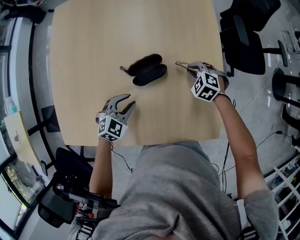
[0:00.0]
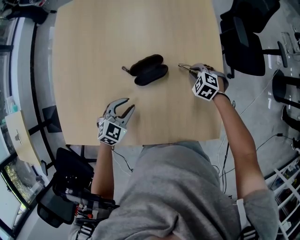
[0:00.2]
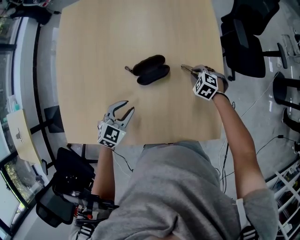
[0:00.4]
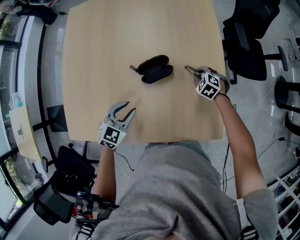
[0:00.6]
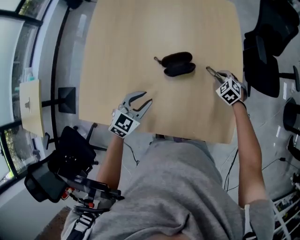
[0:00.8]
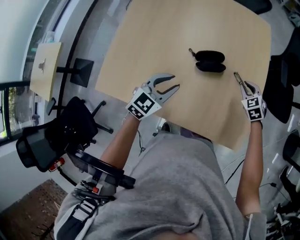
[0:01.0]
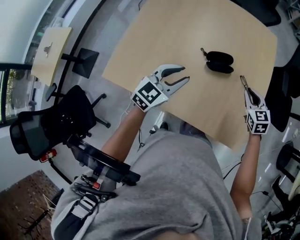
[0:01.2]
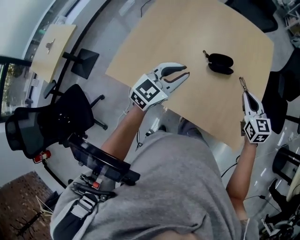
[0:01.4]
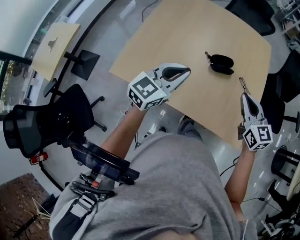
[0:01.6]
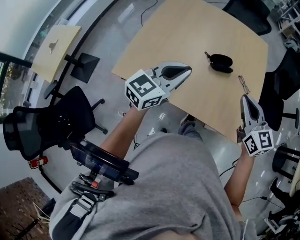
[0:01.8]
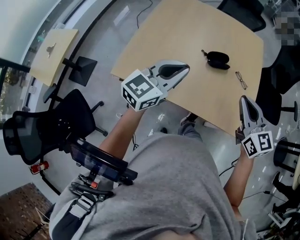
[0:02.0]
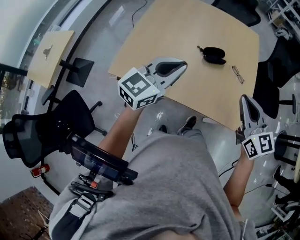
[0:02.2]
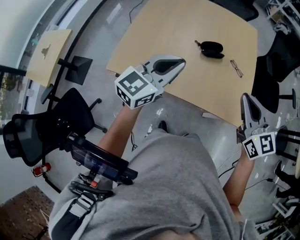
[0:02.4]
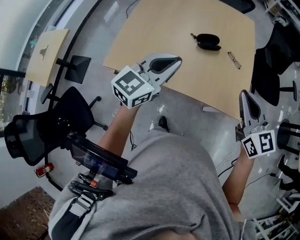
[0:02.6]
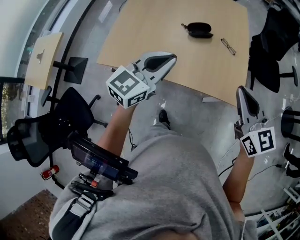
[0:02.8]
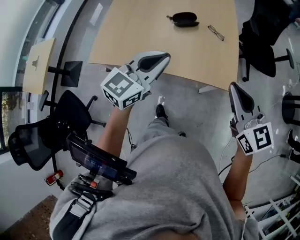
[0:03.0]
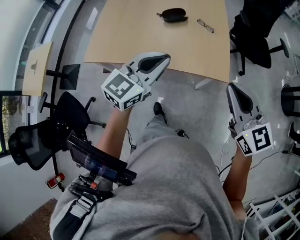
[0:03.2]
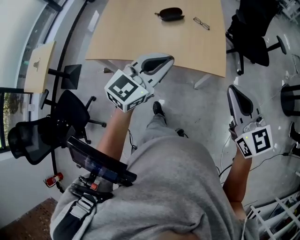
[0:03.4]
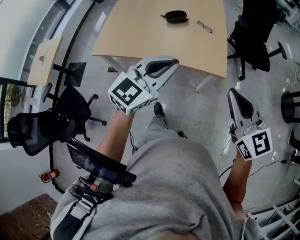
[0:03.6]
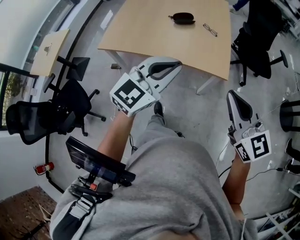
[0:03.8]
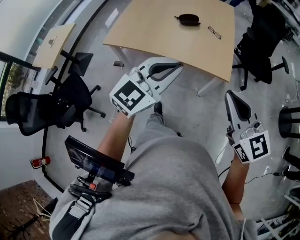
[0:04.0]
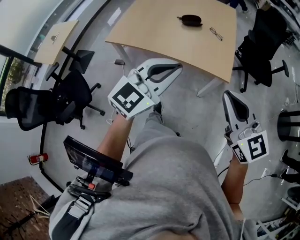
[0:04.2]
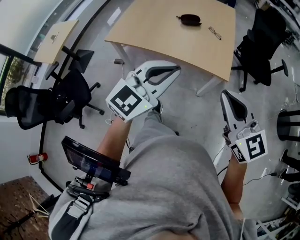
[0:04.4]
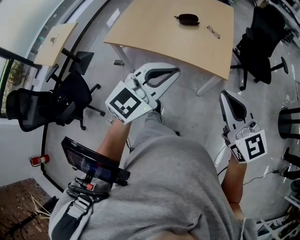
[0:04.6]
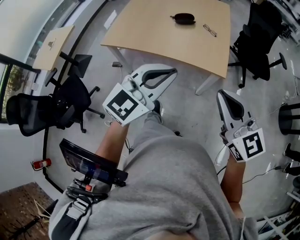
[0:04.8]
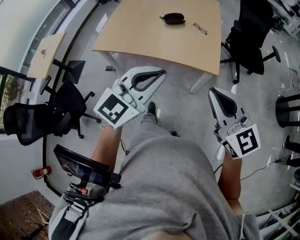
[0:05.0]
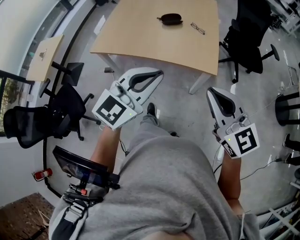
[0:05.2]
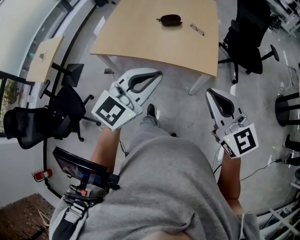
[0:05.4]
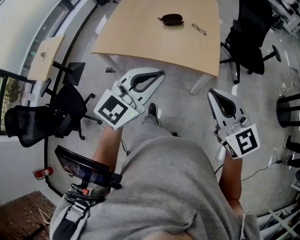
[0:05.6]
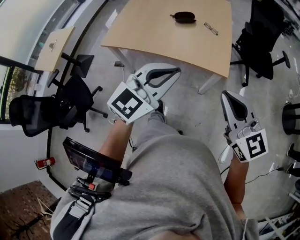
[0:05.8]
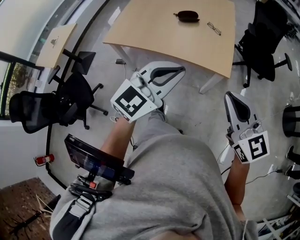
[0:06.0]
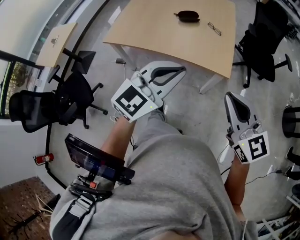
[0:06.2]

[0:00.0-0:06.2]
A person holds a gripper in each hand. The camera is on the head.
0:00.0 to 0:01.6: Both grippers travel together upward and backward, about 35 cm. The right gripper tilts its fingers roughly 50 degrees upward, while the left gripper tips its fingers upward by about 40 degrees, and closes.
0:01.6 to 0:03.2: Both grippers travel together backward and to the right, roughly 30 cm.
0:03.2 to 0:04.6: The two grippers go approximately 20 cm backward.
0:04.6 to 0:06.2: There are only small adjustments of the grippers.

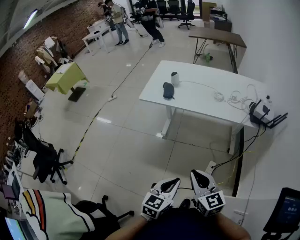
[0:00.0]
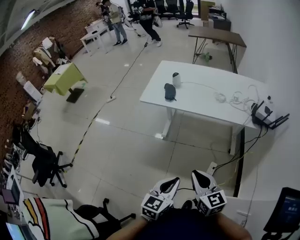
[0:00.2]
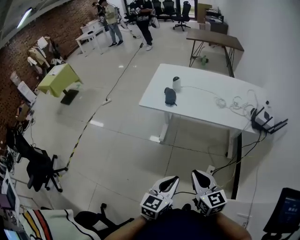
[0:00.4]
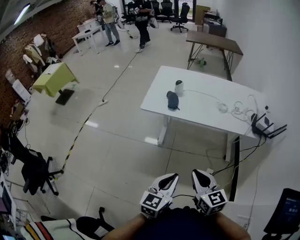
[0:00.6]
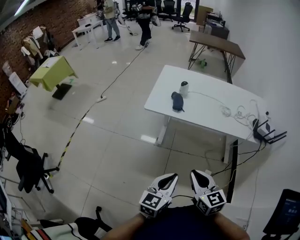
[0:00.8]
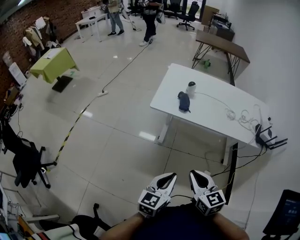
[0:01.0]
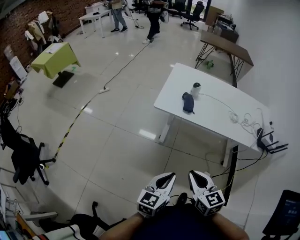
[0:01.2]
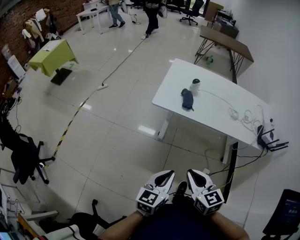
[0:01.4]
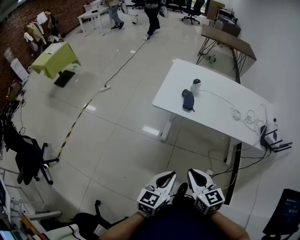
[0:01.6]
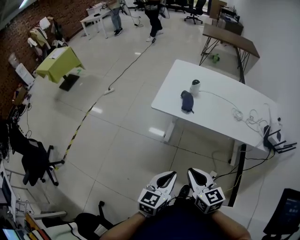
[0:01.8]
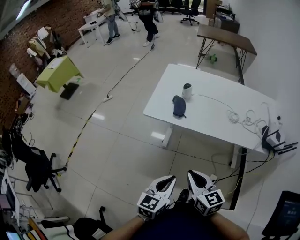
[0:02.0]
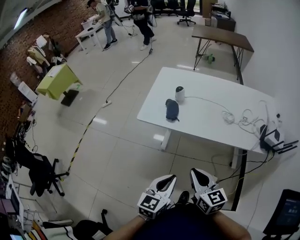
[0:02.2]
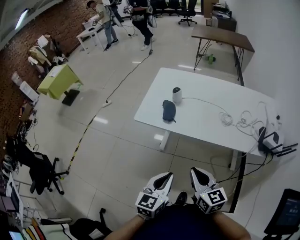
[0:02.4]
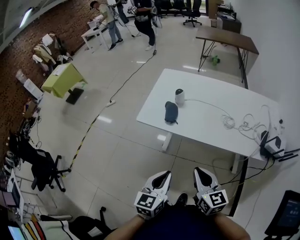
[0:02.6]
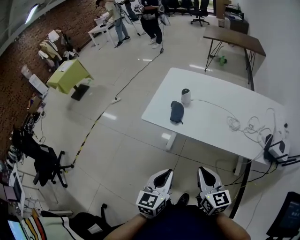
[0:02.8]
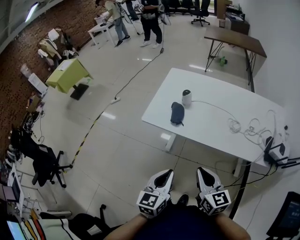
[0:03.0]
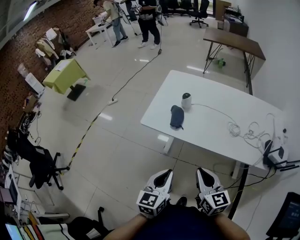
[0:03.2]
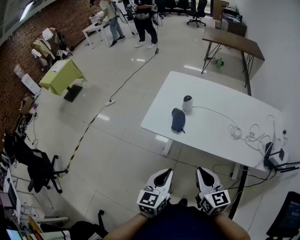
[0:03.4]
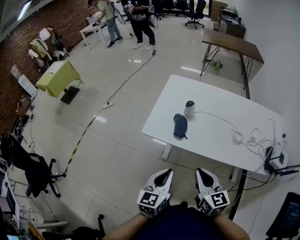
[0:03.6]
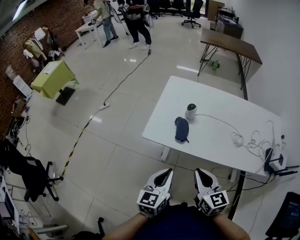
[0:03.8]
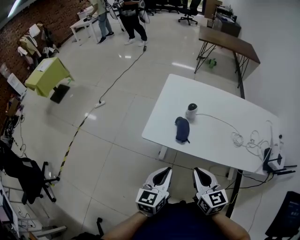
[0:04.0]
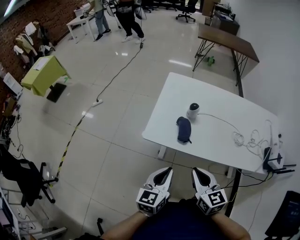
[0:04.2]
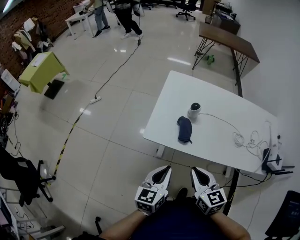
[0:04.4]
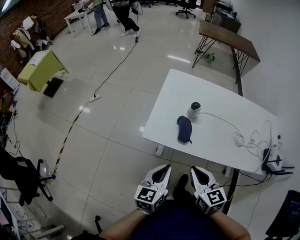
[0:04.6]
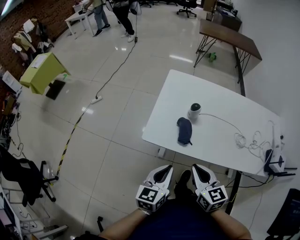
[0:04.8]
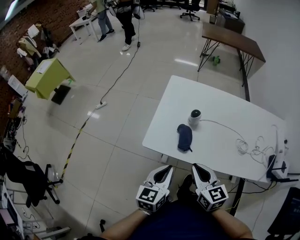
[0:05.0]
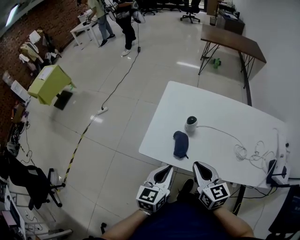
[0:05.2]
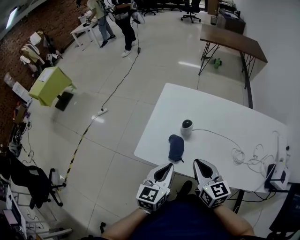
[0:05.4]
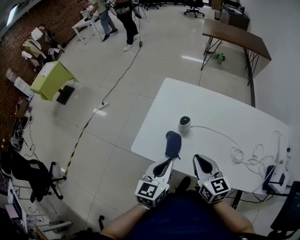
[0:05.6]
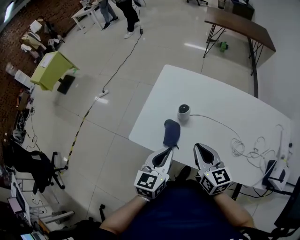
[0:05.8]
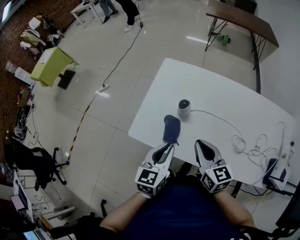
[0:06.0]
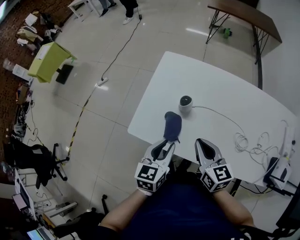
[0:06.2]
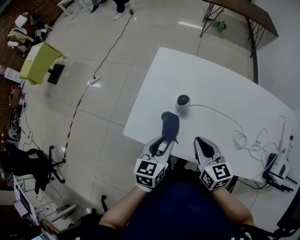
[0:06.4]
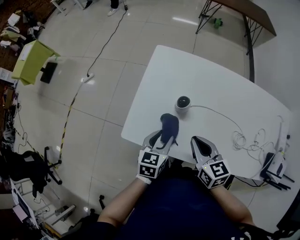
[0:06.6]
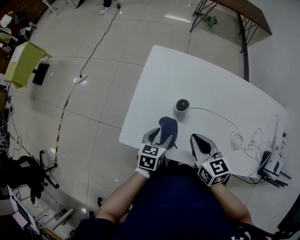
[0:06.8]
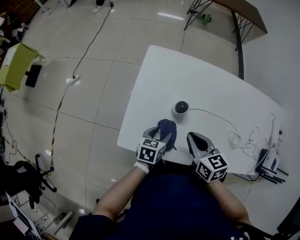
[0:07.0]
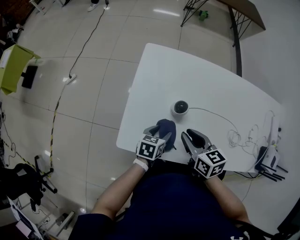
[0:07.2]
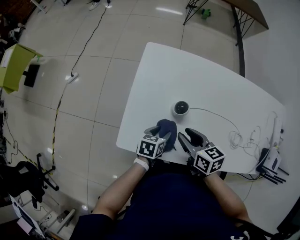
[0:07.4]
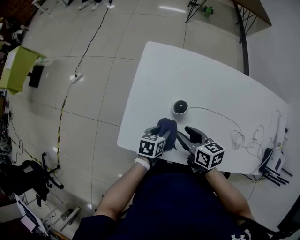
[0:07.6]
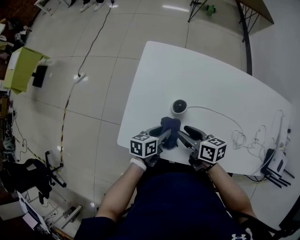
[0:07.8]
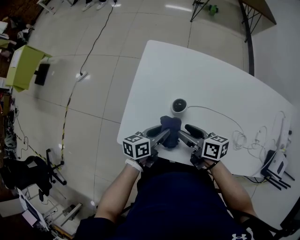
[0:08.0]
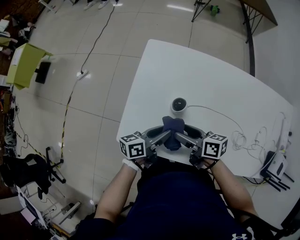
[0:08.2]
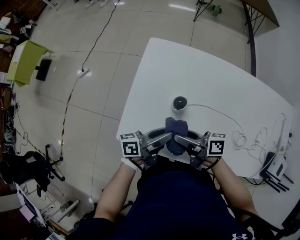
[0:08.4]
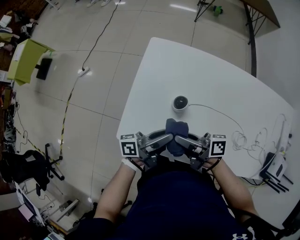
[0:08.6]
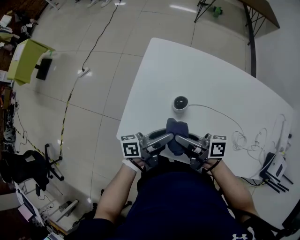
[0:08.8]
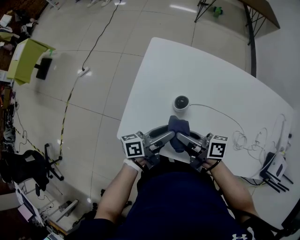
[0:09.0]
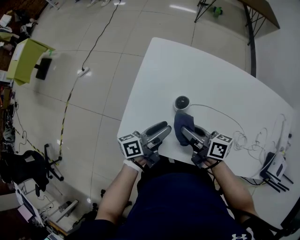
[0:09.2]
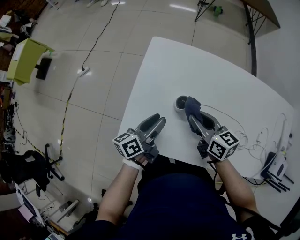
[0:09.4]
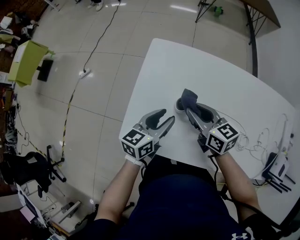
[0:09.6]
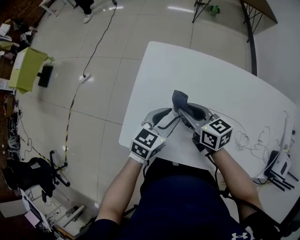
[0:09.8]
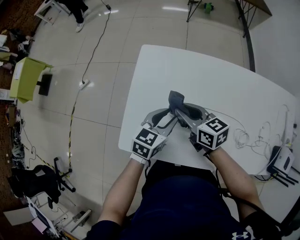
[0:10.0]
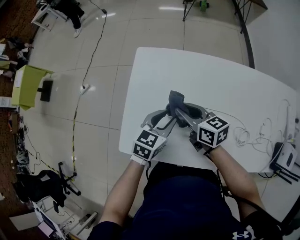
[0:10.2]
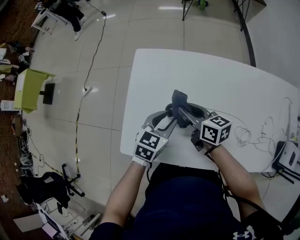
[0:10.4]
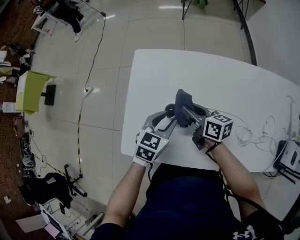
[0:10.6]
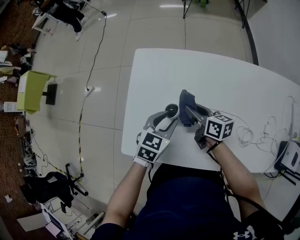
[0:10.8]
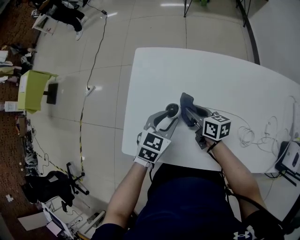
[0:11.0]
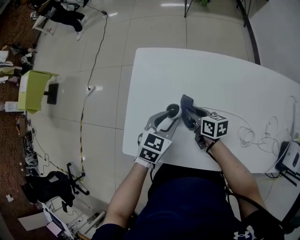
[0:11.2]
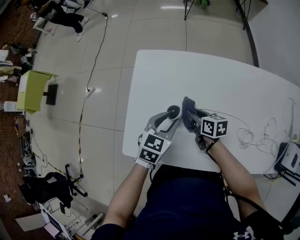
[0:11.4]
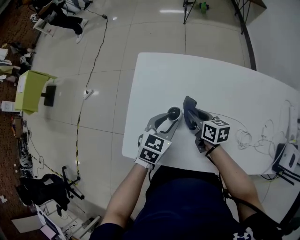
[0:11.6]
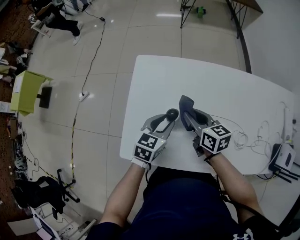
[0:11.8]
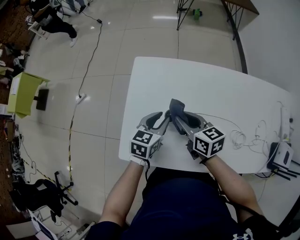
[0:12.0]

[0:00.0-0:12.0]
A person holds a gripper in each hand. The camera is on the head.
0:00.0 to 0:01.6: Both grippers move to the left and forward, about 25 cm.
0:01.6 to 0:03.0: The left gripper travels forward and to the right by some 15 cm, while the right gripper heads to the right and forward, covering roughly 20 cm.
0:03.0 to 0:04.4: The left gripper is displaced forward and to the left by about 20 cm. The right gripper shifts some 20 cm to the left and forward.
0:04.4 to 0:06.0: Both grippers travel together forward and to the right, some 20 cm.
0:06.0 to 0:07.6: The left gripper travels downward and forward by about 20 cm, changes its angle by approximately 40 degrees, and opens. Meanwhile the right gripper travels downward, forward and to the left by approximately 15 cm, swivels approximately 30 degrees, and opens its fingers.
0:07.6 to 0:09.0: The left gripper moves upward, roughly 10 cm, and points its fingers roughly 50 degrees further upward; the right gripper rotates roughly 40 degrees, and closes its fingers.
0:09.0 to 0:10.4: The left gripper shifts about 10 cm forward, and rotates around the line of its fingers by some 50 degrees, clockwise from behind. The right gripper heads forward, covering roughly 10 cm, and turns by approximately 30 degrees.
0:10.4 to 0:12.0: The right gripper goes downward and returns, roughly 10 cm each way.

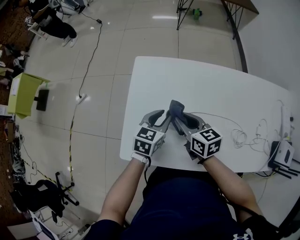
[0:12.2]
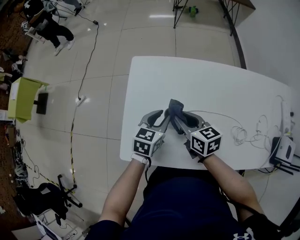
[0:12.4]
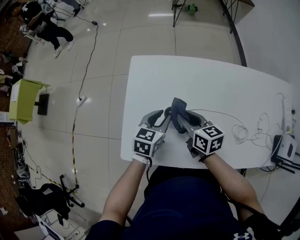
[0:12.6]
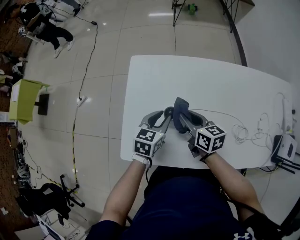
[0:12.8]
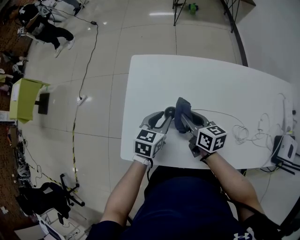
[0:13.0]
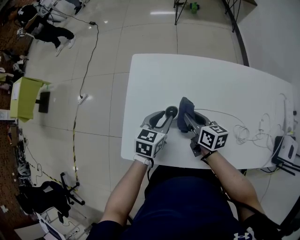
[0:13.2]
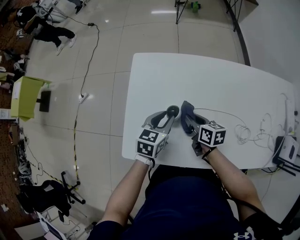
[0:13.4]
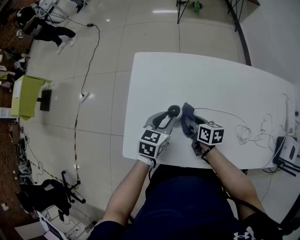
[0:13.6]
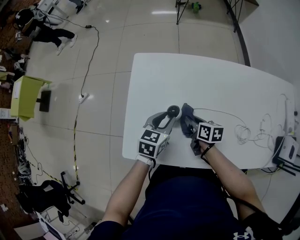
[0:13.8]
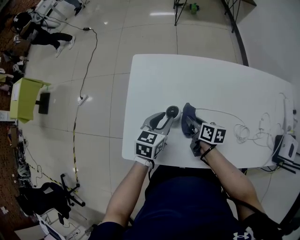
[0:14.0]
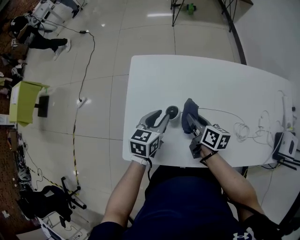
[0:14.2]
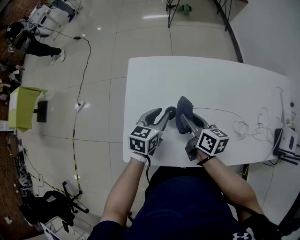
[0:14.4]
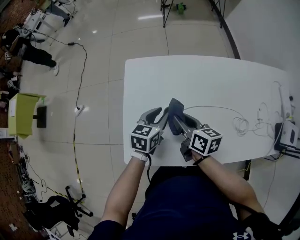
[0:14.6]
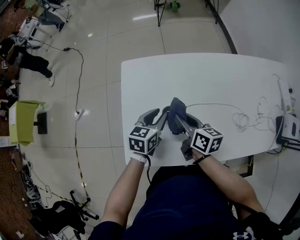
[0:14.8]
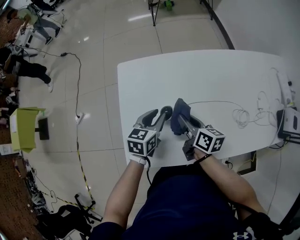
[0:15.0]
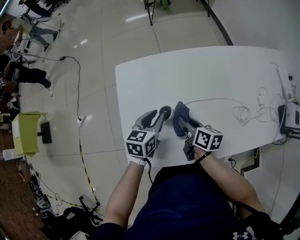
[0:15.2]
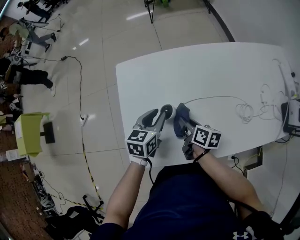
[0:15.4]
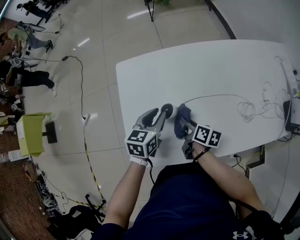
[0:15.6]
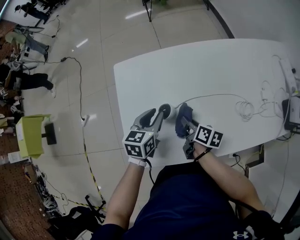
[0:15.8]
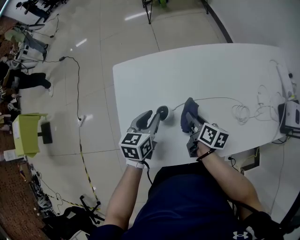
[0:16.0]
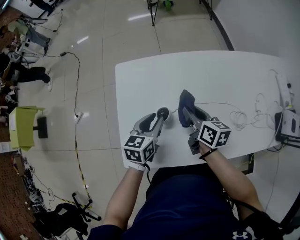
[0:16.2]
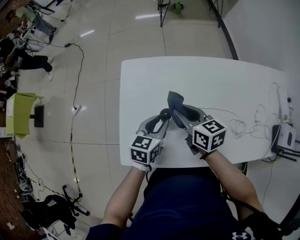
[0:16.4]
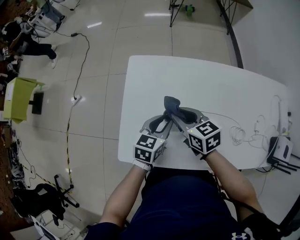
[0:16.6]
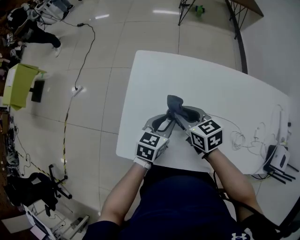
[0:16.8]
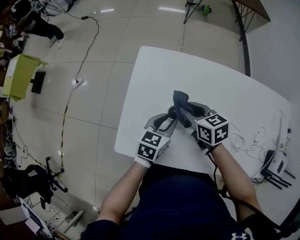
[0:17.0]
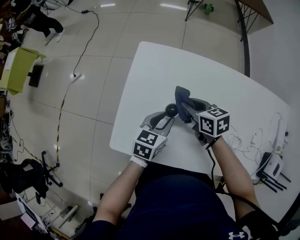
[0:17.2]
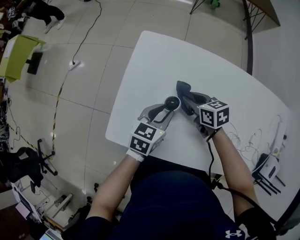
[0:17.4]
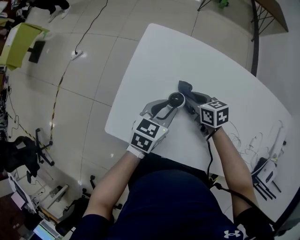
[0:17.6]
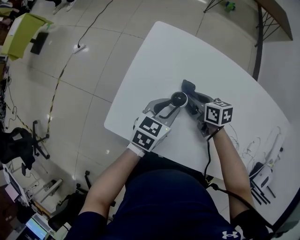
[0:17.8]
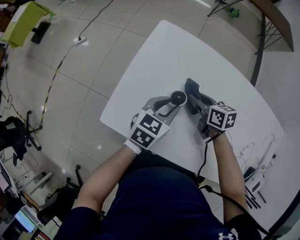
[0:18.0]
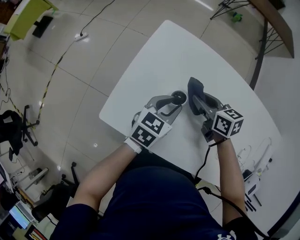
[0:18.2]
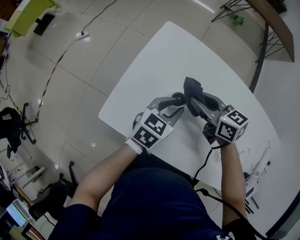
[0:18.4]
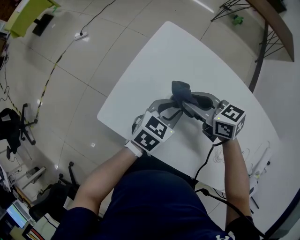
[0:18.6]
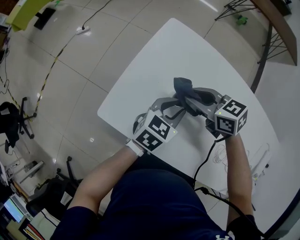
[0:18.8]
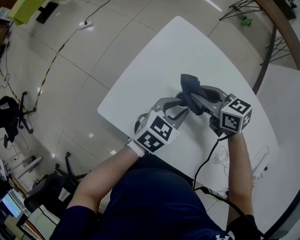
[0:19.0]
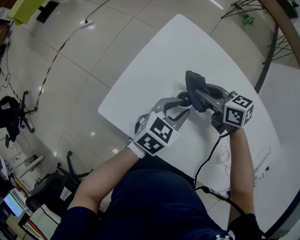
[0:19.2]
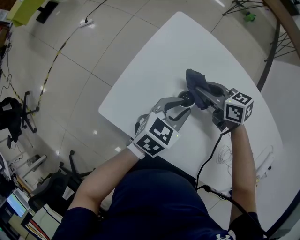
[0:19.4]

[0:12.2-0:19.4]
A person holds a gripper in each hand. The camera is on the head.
0:12.2 to 0:13.6: The right gripper travels downward by roughly 10 cm, and rotates about 20 degrees.
0:13.6 to 0:15.0: The right gripper goes some 10 cm upward, and turns by some 20 degrees.
0:15.0 to 0:16.6: The right gripper goes downward and returns, roughly 10 cm each way, and rotates roughly 40 degrees.
0:16.6 to 0:18.0: The right gripper goes roughly 10 cm downward.
0:18.0 to 0:19.4: The right gripper turns by roughly 30 degrees.
